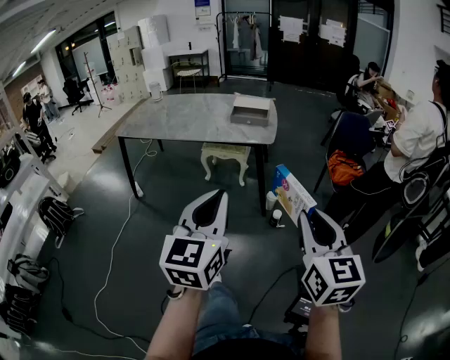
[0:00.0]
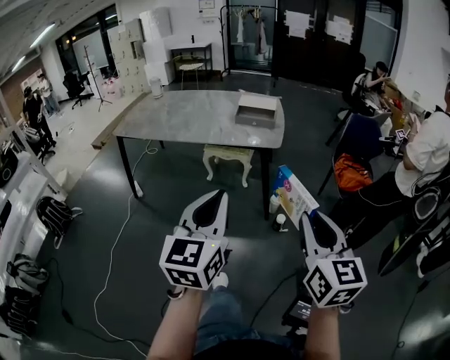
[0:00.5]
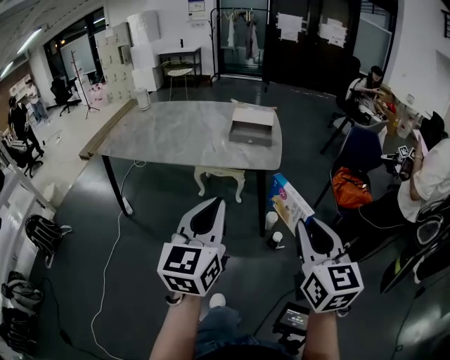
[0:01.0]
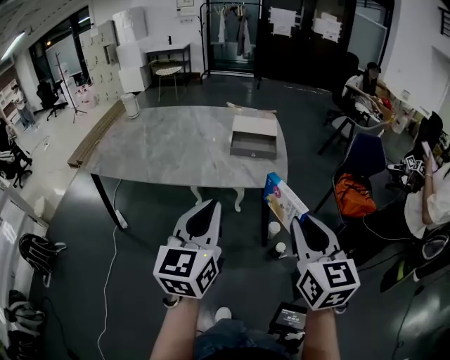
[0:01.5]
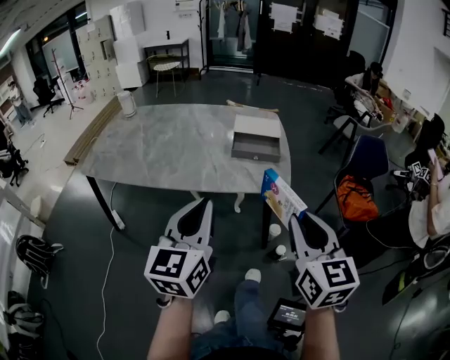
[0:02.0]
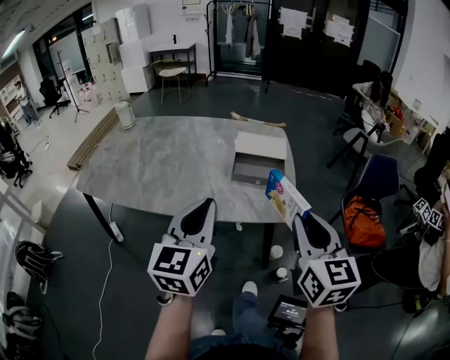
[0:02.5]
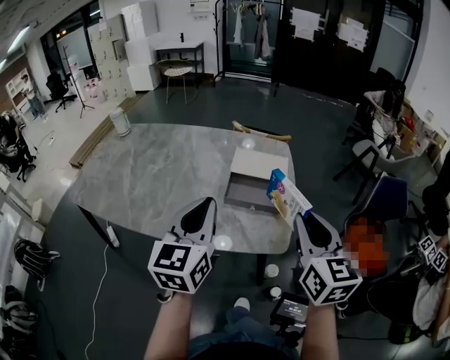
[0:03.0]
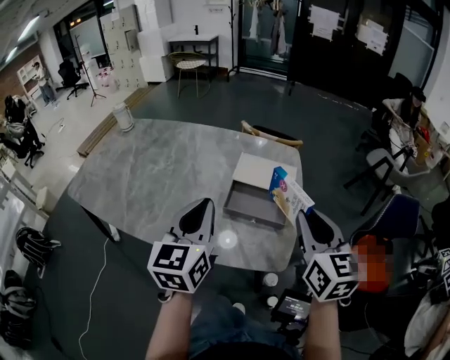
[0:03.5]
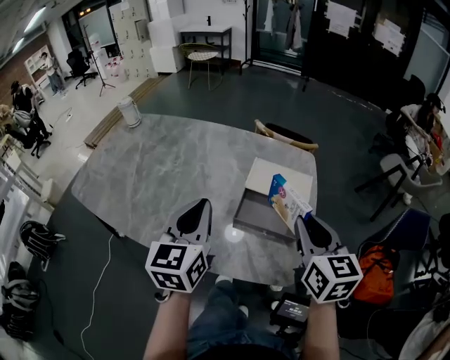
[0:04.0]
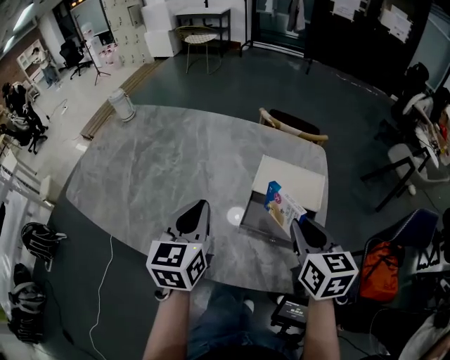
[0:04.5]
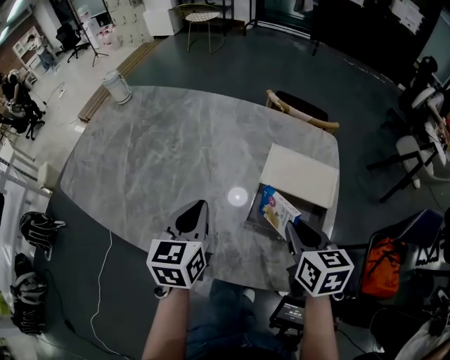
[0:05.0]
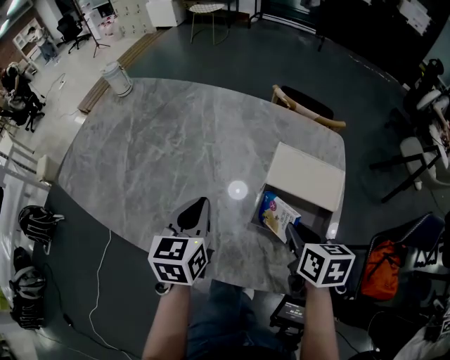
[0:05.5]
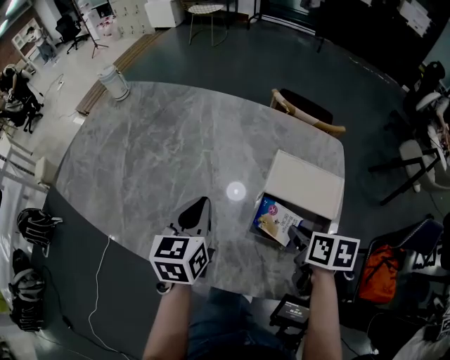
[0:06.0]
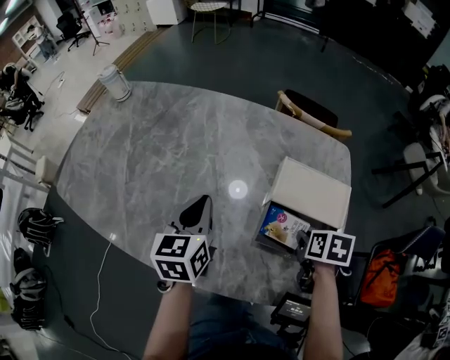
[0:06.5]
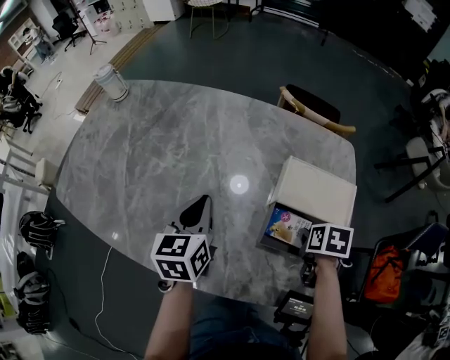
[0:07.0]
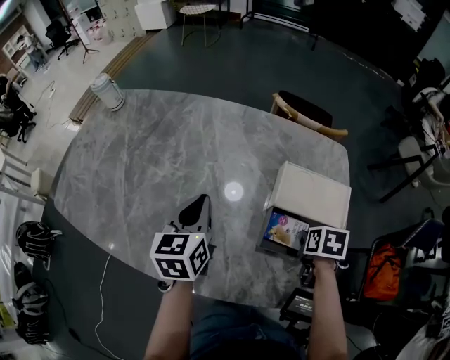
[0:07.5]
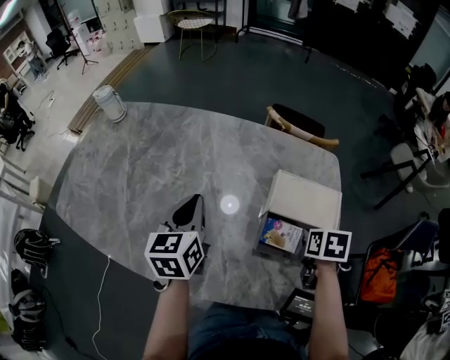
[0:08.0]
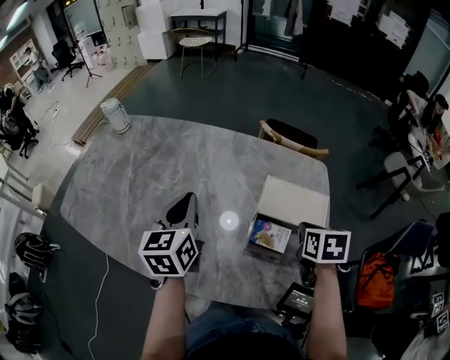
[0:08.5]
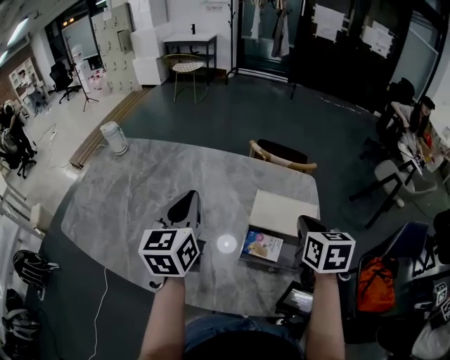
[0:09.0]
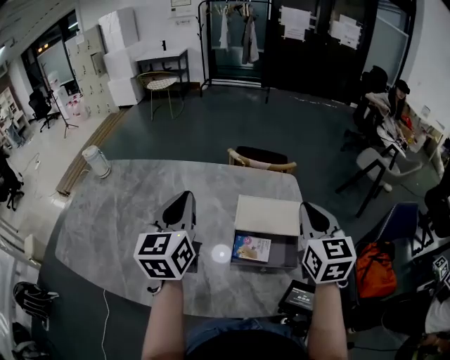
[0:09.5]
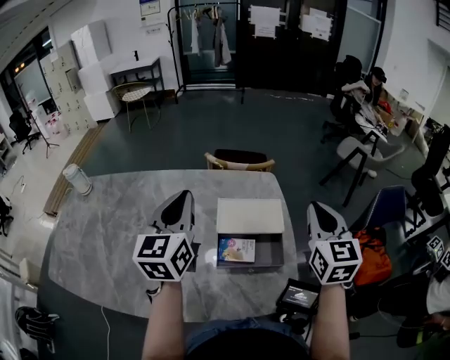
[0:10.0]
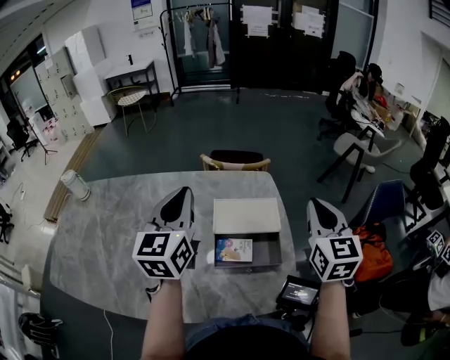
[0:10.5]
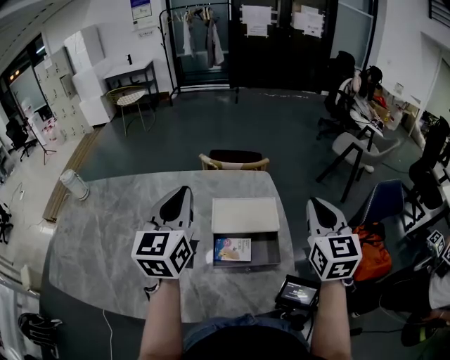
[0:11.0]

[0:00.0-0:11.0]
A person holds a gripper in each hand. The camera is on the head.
0:00.0 to 0:02.0: Both grippers move forward, about 35 cm.
0:02.0 to 0:03.5: Both grippers move forward, about 30 cm.
0:03.5 to 0:05.5: The left gripper travels downward, forward and to the left by some 20 cm, and changes its angle by roughly 20 degrees; the right gripper is displaced downward and forward by some 20 cm, and tips its fingers downward by roughly 30 degrees.
0:05.5 to 0:07.5: The left gripper moves forward, approximately 5 cm; the right gripper is displaced downward and to the right by approximately 10 cm, and swivels roughly 30 degrees.
0:07.5 to 0:09.0: The two grippers go about 15 cm upward. The right gripper points its fingers roughly 40 degrees further upward.
0:09.0 to 0:11.0: Both grippers move to the right and upward, about 15 cm. The right gripper swivels approximately 30 degrees. The left gripper turns by some 20 degrees.

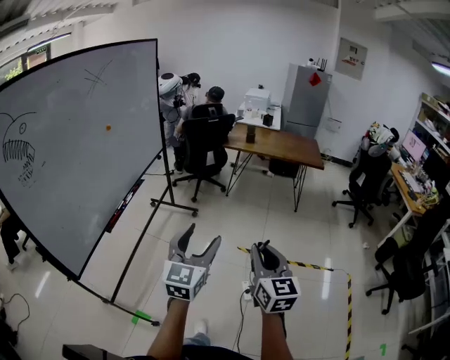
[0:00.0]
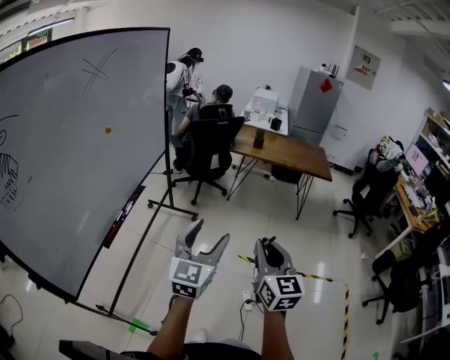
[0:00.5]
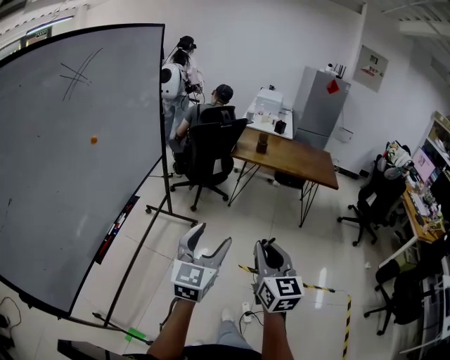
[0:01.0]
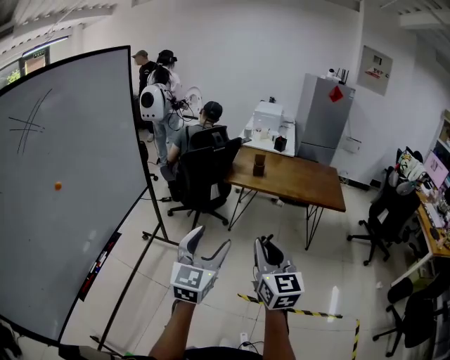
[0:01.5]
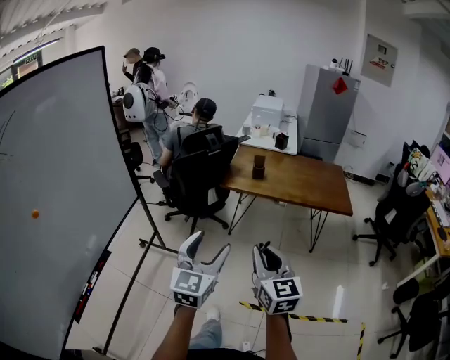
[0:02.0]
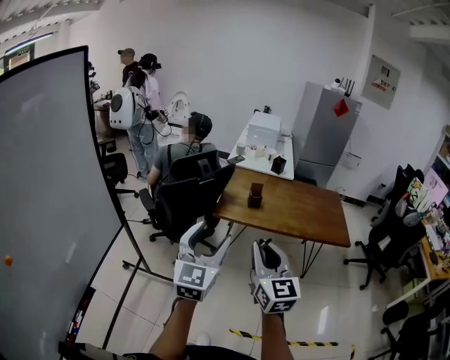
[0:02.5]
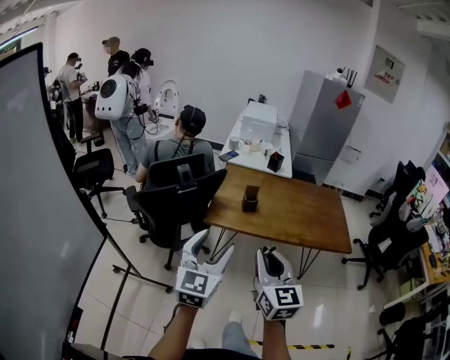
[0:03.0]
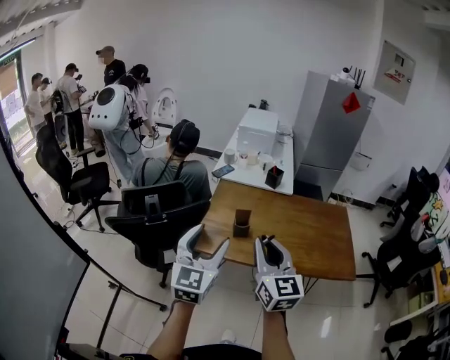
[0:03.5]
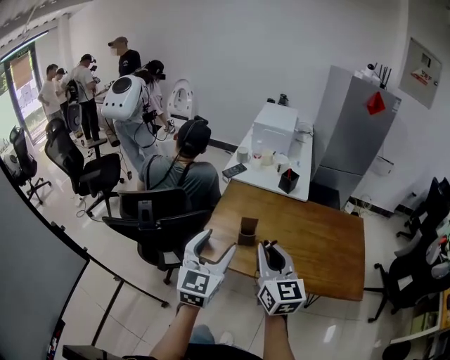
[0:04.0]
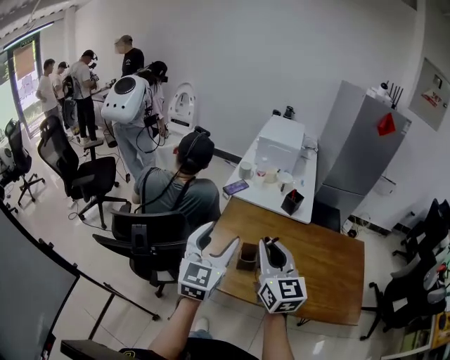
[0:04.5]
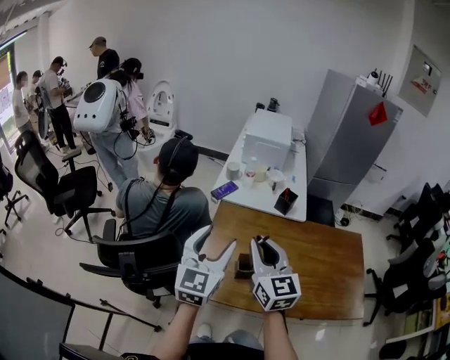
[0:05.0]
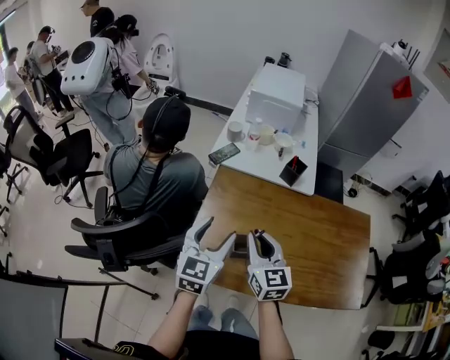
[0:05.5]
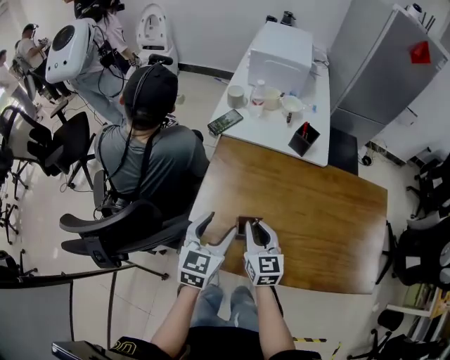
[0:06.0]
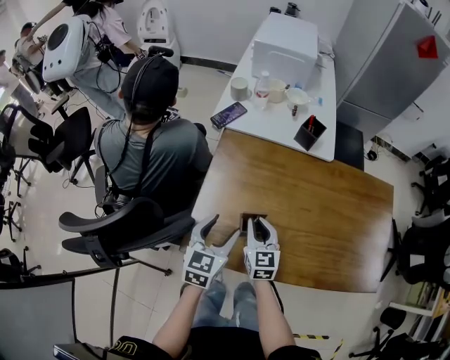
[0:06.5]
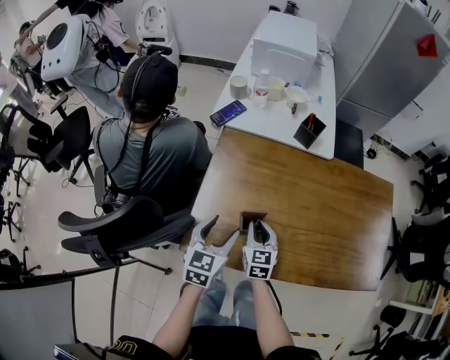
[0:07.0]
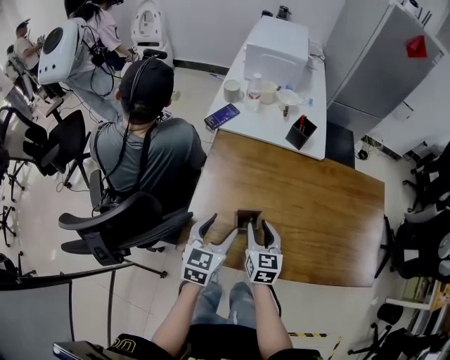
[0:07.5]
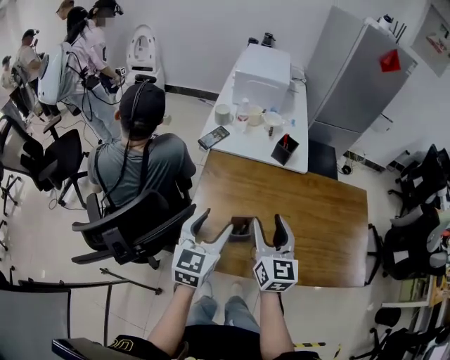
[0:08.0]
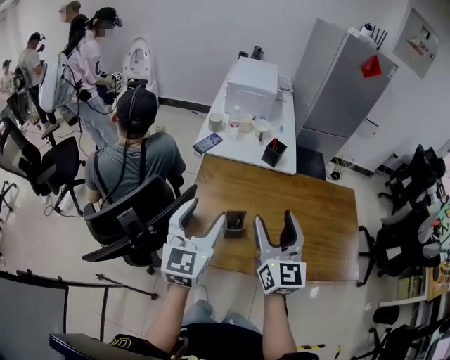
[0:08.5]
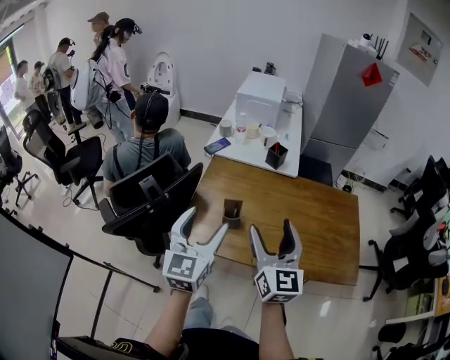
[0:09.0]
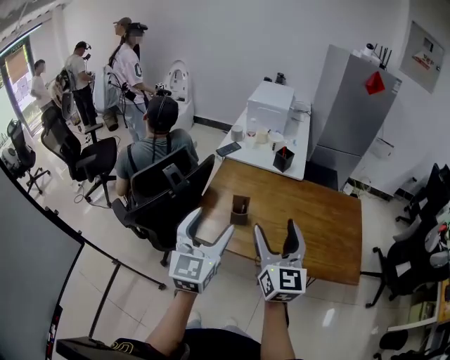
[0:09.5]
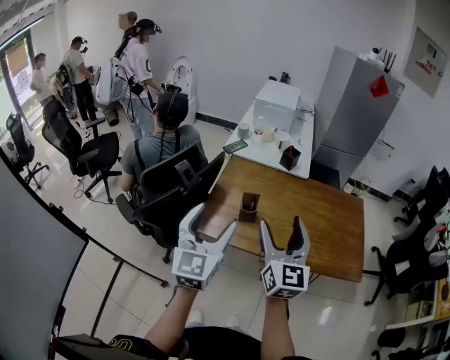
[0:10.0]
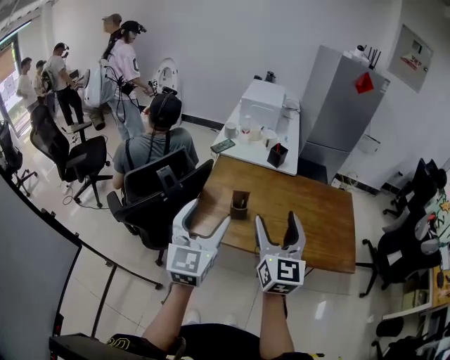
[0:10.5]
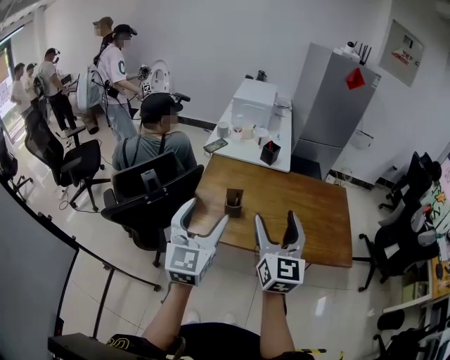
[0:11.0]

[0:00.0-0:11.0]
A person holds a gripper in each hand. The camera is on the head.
0:00.0 to 0:02.0: The pair of grippers is taken forward, some 60 cm.
0:02.0 to 0:03.5: Both grippers are carried forward, roughly 50 cm.
0:03.5 to 0:05.5: The two grippers go some 35 cm forward and downward.
0:05.5 to 0:07.5: Both grippers travel together downward, roughly 15 cm.
0:07.5 to 0:09.0: The grippers both shift upward and backward by roughly 30 cm. The left gripper turns by approximately 30 degrees, while the right gripper swivels some 30 degrees, and opens its fingers.
0:09.0 to 0:11.0: The grippers both shift backward by roughly 10 cm.

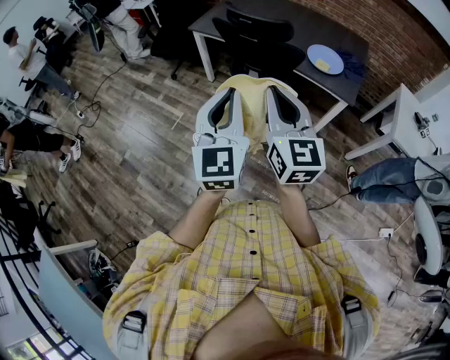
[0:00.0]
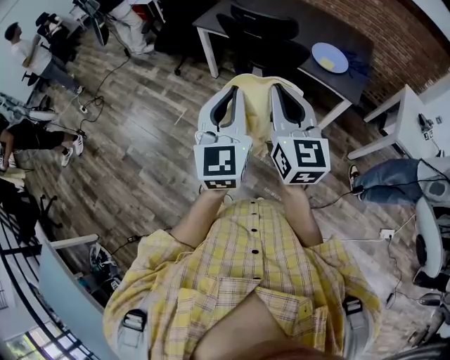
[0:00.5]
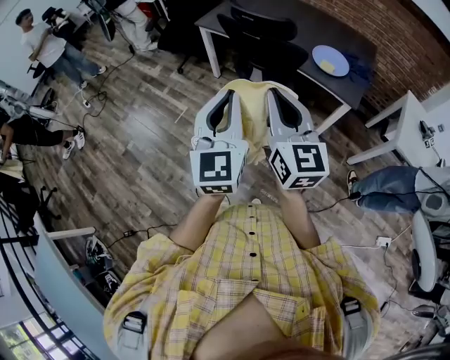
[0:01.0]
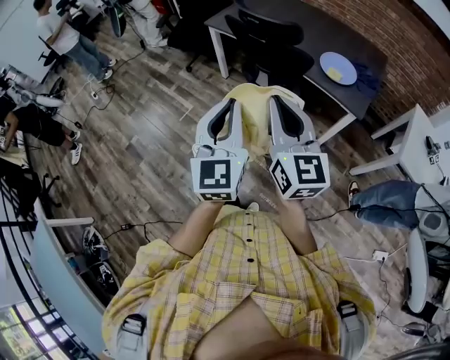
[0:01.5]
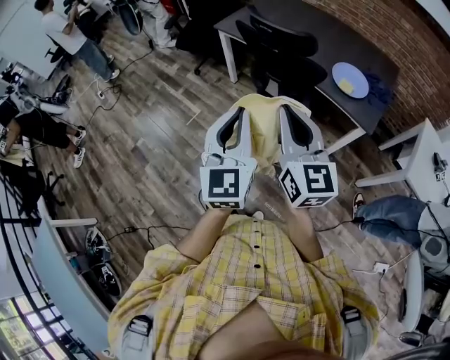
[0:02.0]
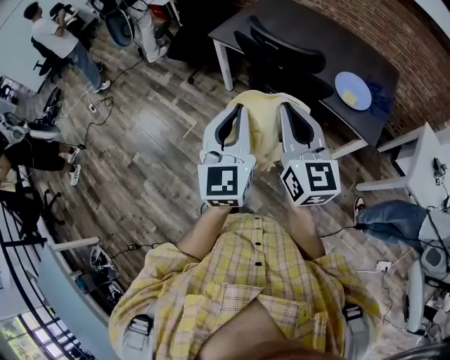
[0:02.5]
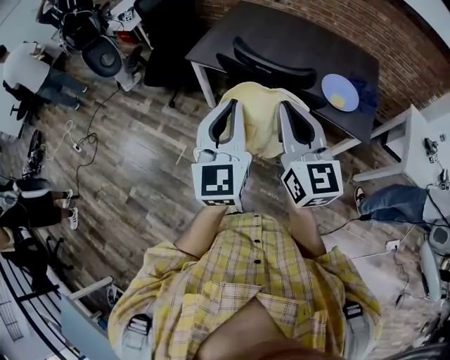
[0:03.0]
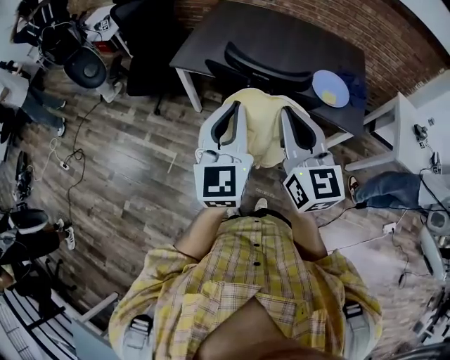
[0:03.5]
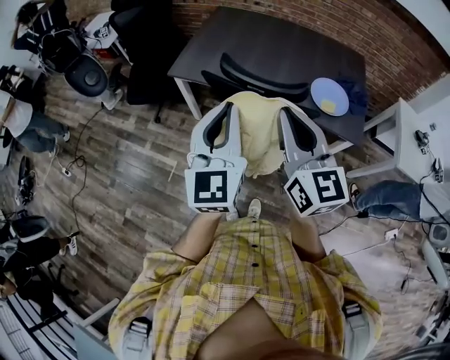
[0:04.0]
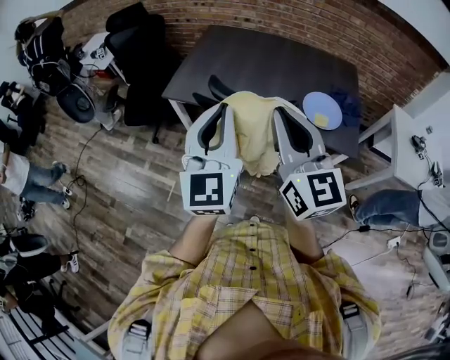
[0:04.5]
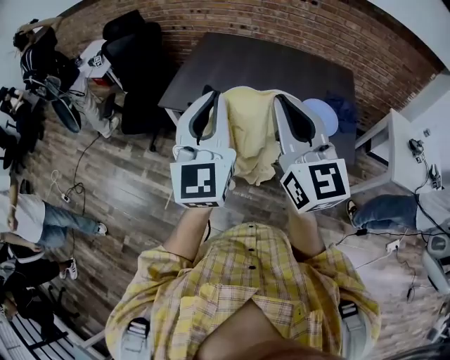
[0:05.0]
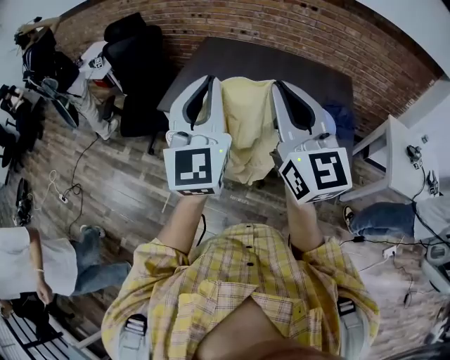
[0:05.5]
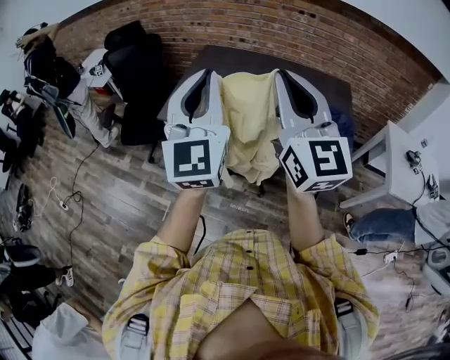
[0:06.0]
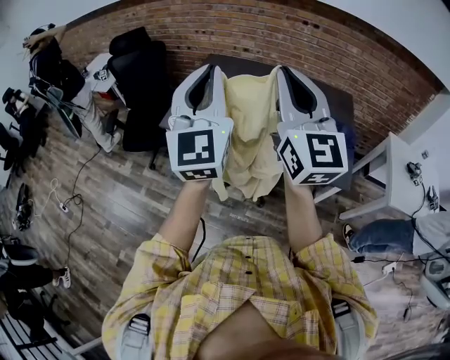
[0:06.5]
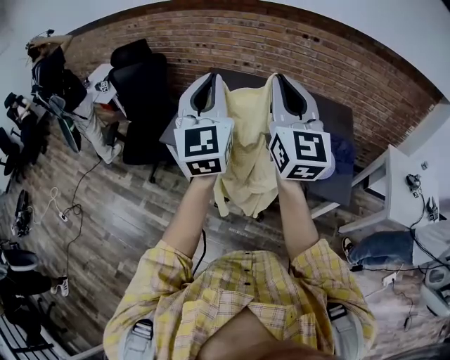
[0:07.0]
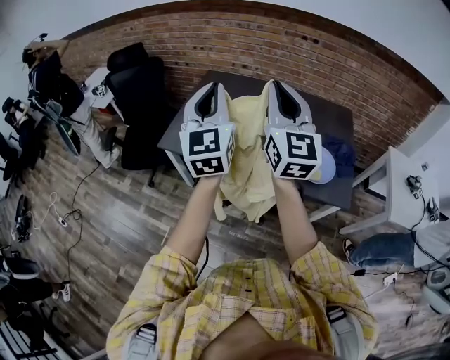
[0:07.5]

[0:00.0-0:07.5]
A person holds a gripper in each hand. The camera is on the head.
0:00.0 to 0:02.0: The left gripper shifts by some 5 cm; the right gripper ends up roughly 5 cm from where it was.
0:02.0 to 0:04.0: The grippers both shift forward by approximately 30 cm. The left gripper changes its angle by some 20 degrees.
0:04.0 to 0:05.5: The two grippers go some 15 cm upward and forward.
0:05.5 to 0:07.5: Both grippers travel together forward, some 15 cm.
